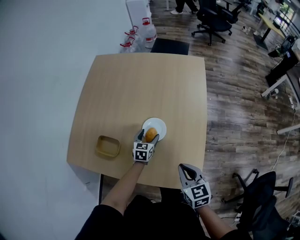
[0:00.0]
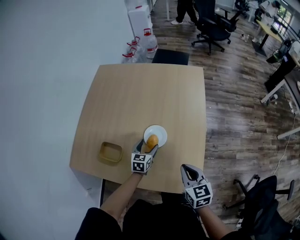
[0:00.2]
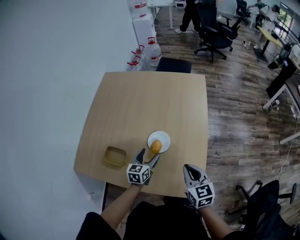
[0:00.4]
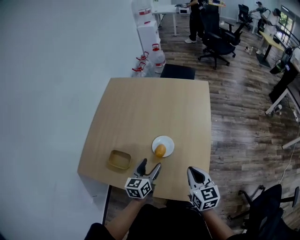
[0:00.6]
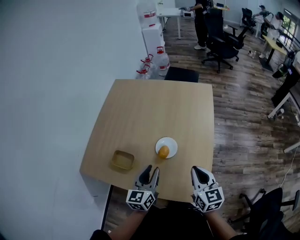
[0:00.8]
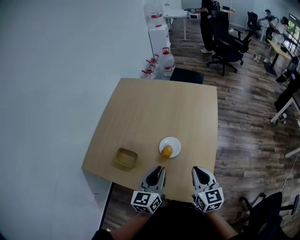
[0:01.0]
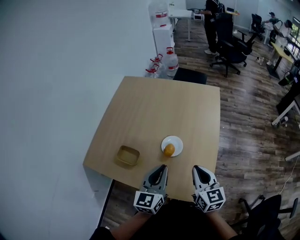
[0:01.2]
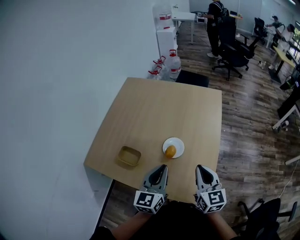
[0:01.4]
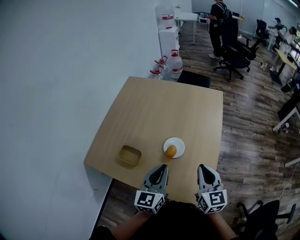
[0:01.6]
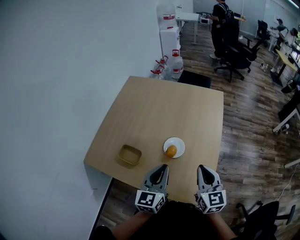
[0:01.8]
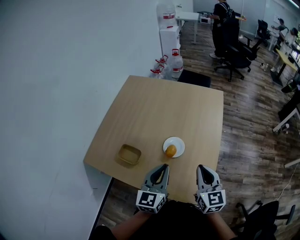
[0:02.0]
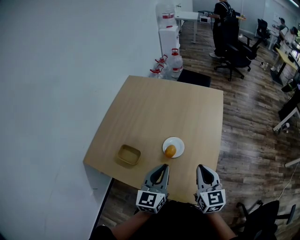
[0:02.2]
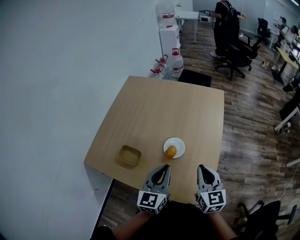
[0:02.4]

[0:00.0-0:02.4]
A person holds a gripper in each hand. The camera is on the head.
0:00.0 to 0:01.2: The right gripper goes roughly 10 cm upward; the left gripper moves upward and backward, approximately 35 cm, rotates approximately 30 degrees, and closes up.
0:01.2 to 0:02.4: There are only small adjustments of the grippers.

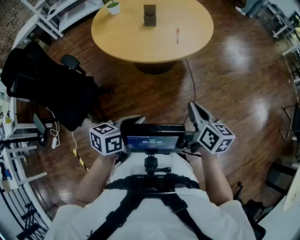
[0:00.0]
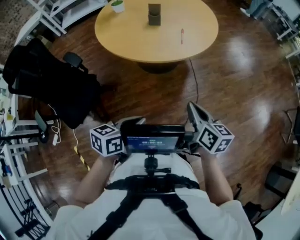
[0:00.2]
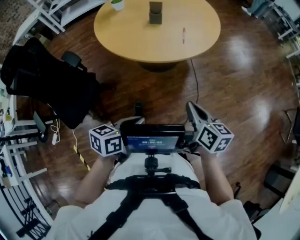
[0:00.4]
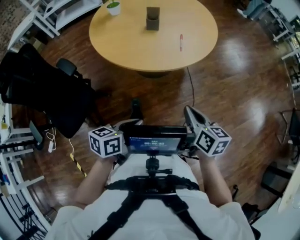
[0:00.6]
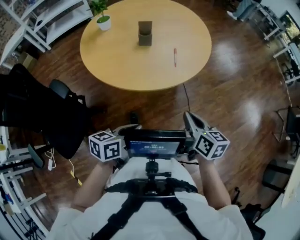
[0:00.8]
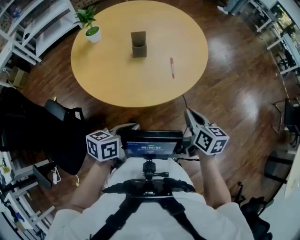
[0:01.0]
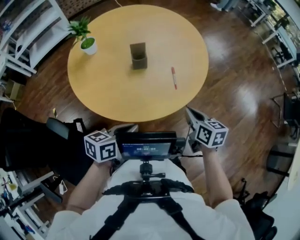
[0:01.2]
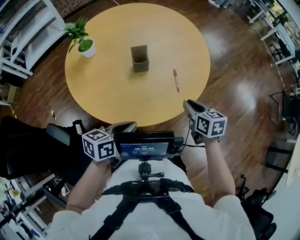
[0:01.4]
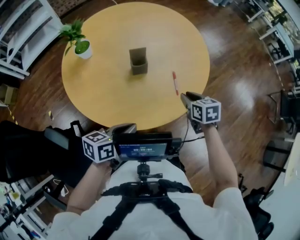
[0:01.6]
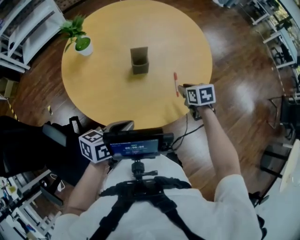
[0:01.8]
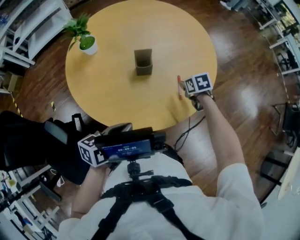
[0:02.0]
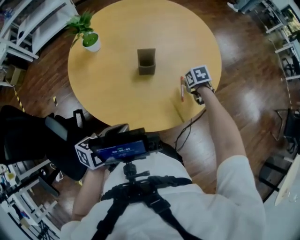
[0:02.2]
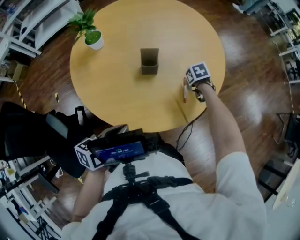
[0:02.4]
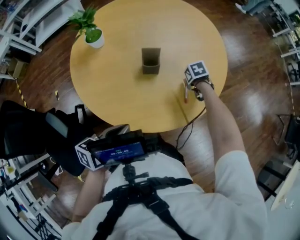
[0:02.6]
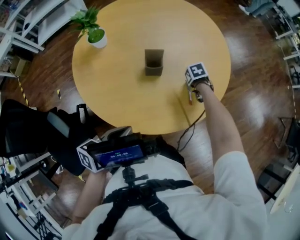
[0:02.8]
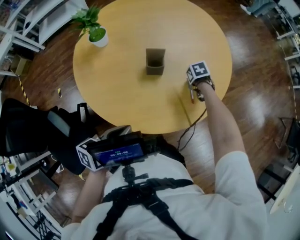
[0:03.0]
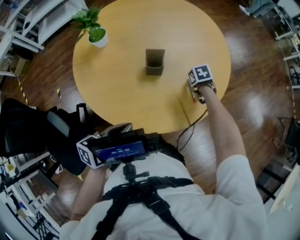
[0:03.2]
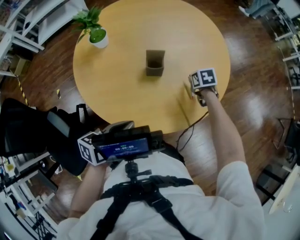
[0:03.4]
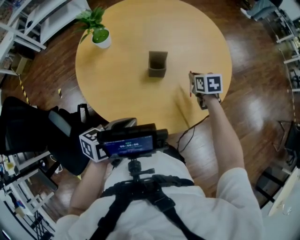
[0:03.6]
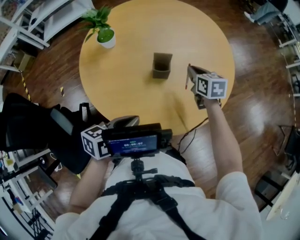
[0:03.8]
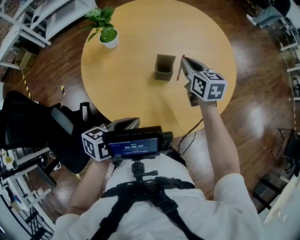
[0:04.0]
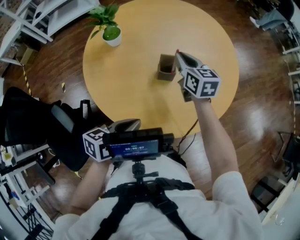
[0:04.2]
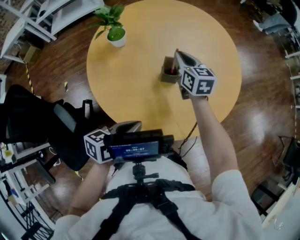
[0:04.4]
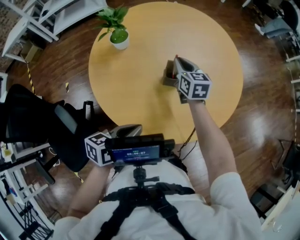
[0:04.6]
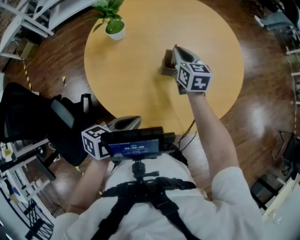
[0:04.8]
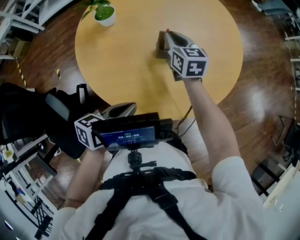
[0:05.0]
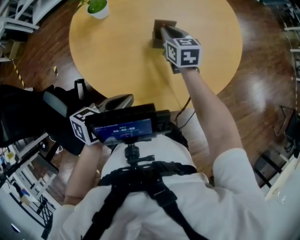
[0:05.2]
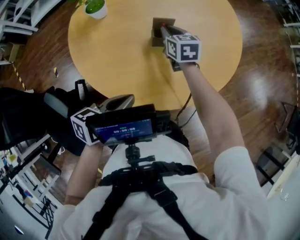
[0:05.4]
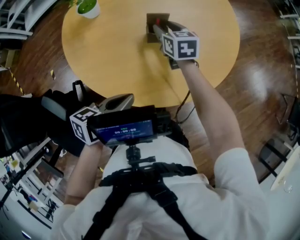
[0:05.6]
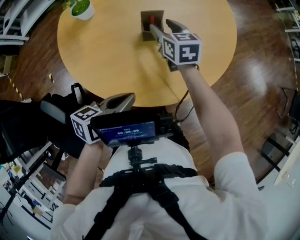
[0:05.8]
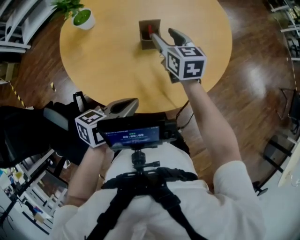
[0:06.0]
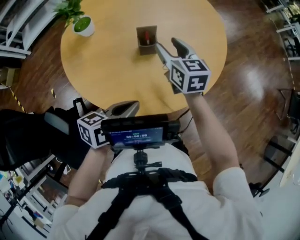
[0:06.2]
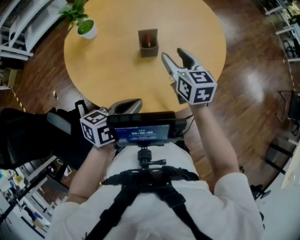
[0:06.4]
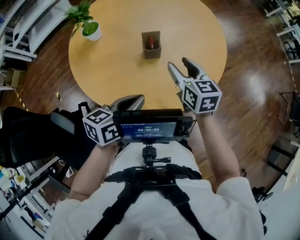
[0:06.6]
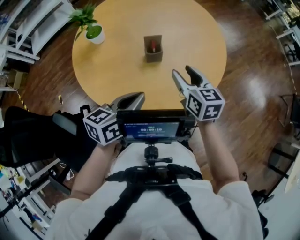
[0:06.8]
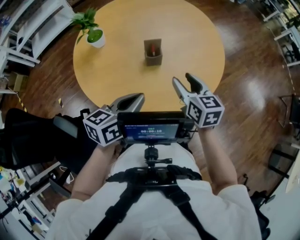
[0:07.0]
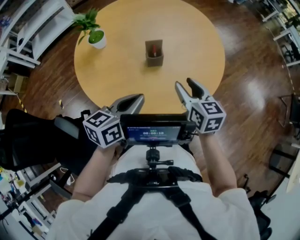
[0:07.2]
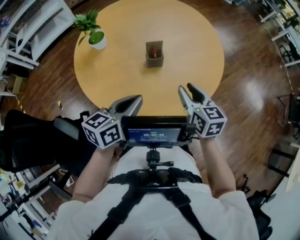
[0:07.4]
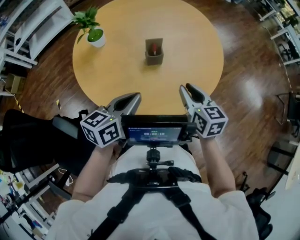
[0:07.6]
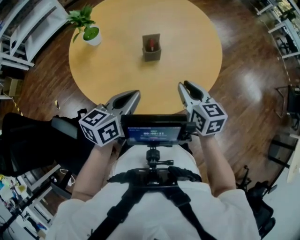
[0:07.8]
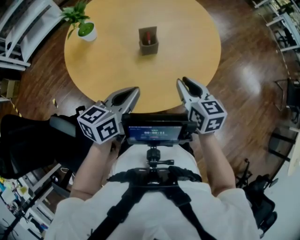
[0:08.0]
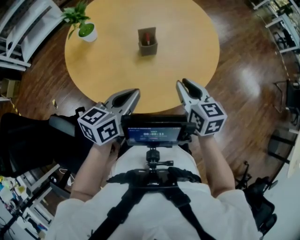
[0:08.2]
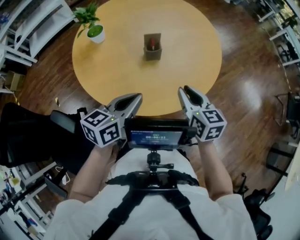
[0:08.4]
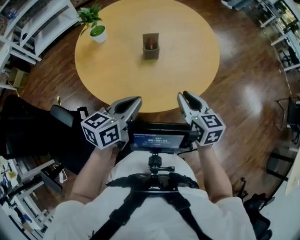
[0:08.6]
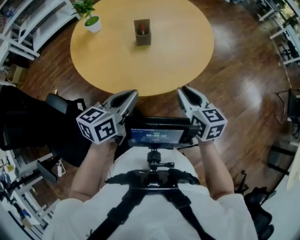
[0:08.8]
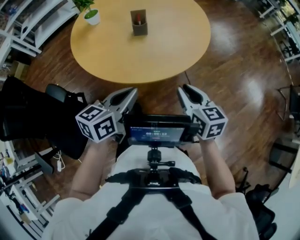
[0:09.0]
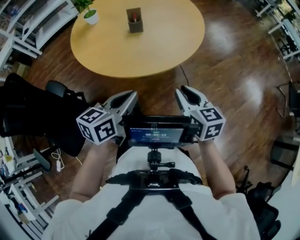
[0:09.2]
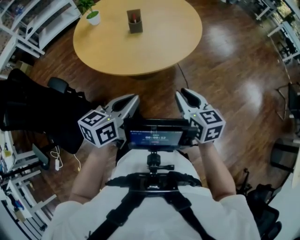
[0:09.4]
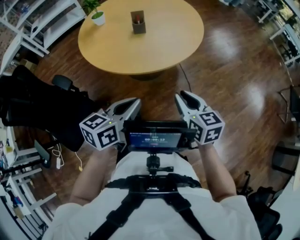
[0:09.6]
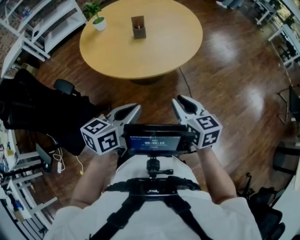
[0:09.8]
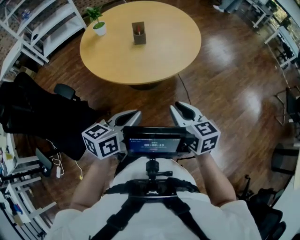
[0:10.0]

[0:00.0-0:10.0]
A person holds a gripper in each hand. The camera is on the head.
0:00.0 to 0:01.4: The right gripper is displaced forward by approximately 30 cm, and swivels roughly 20 degrees, while the left gripper travels forward and to the left by about 35 cm.
0:01.4 to 0:02.8: The right gripper moves some 25 cm, and tips its fingers downward by about 40 degrees.
0:02.8 to 0:04.2: The right gripper moves upward, some 25 cm, and points its fingers some 60 degrees further upward.
0:04.2 to 0:05.8: The right gripper travels downward by approximately 5 cm, and opens up.
0:05.8 to 0:07.2: The left gripper moves upward, approximately 10 cm, and turns by roughly 20 degrees; the right gripper is displaced backward, to the right and upward by about 20 cm.
0:07.2 to 0:08.6: Both grippers travel together backward, some 10 cm. The right gripper closes up.
0:08.6 to 0:10.0: The right gripper goes approximately 20 cm backward, while the left gripper travels backward and to the right by about 25 cm.

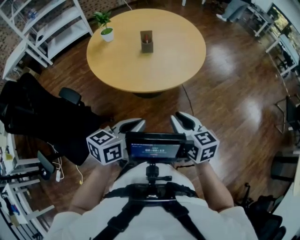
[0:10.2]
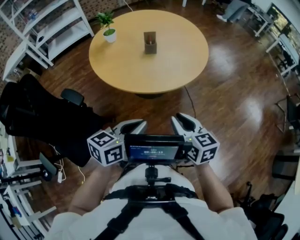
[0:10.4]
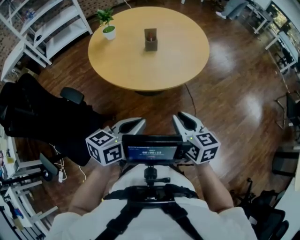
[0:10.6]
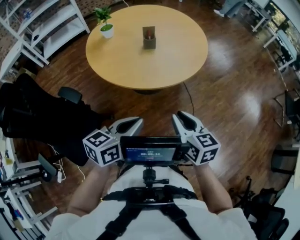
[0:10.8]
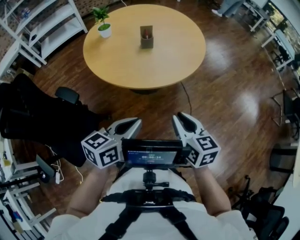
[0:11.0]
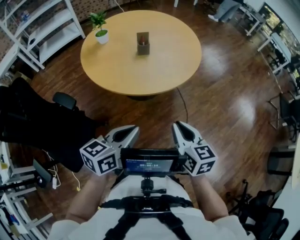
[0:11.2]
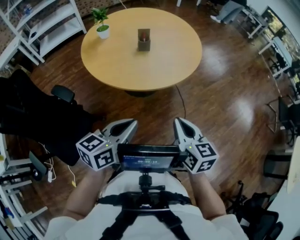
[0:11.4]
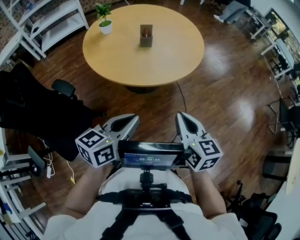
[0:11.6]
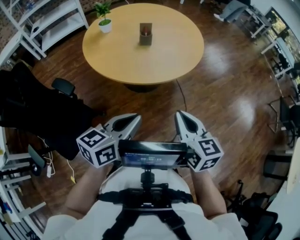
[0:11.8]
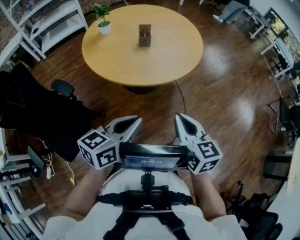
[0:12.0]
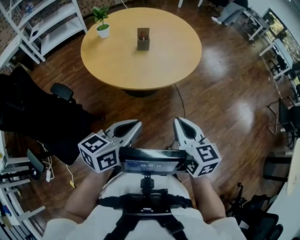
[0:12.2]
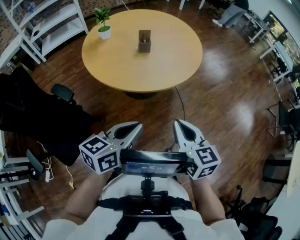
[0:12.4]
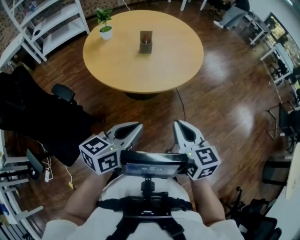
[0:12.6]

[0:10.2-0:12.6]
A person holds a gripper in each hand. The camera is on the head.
0:10.2 to 0:12.6: The grippers move only a little.

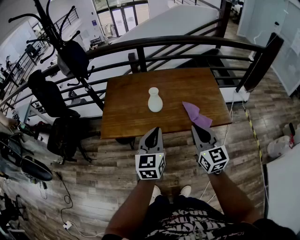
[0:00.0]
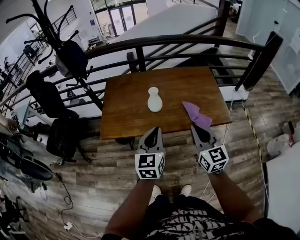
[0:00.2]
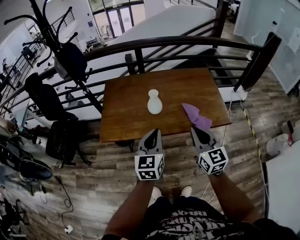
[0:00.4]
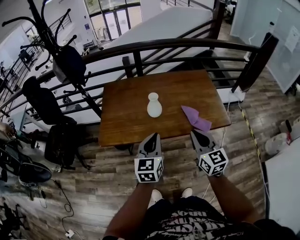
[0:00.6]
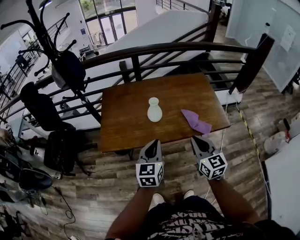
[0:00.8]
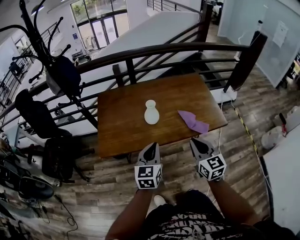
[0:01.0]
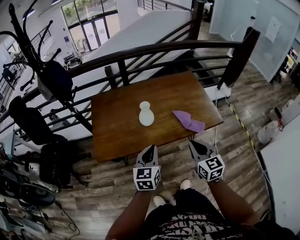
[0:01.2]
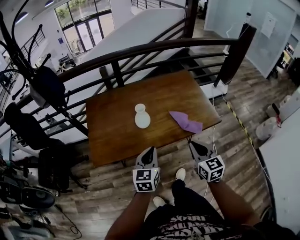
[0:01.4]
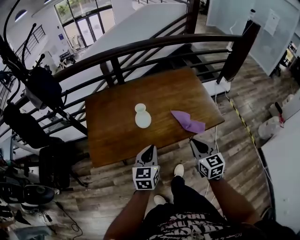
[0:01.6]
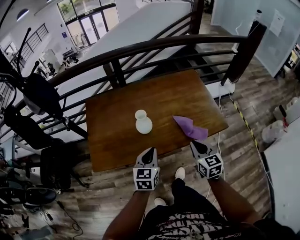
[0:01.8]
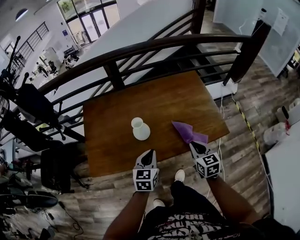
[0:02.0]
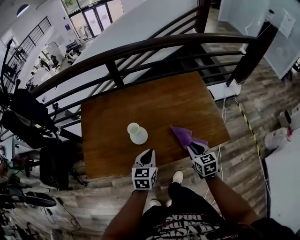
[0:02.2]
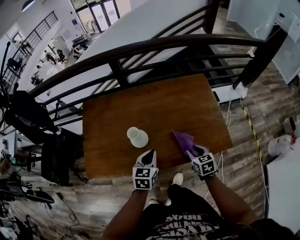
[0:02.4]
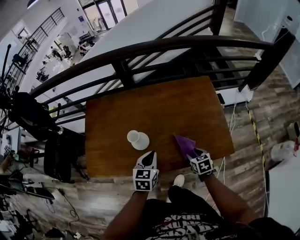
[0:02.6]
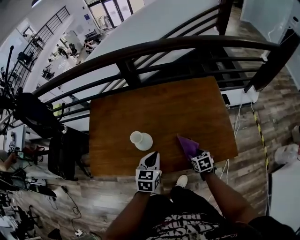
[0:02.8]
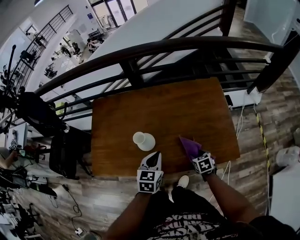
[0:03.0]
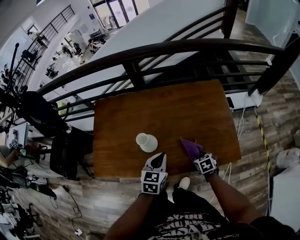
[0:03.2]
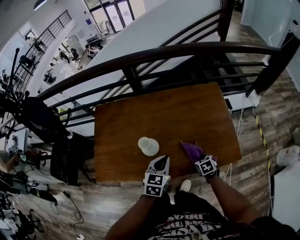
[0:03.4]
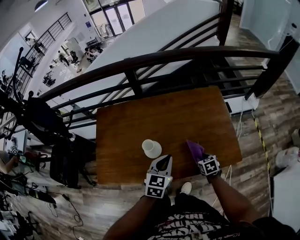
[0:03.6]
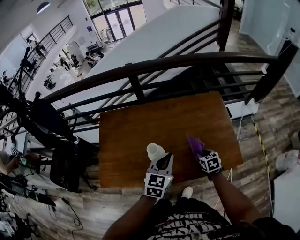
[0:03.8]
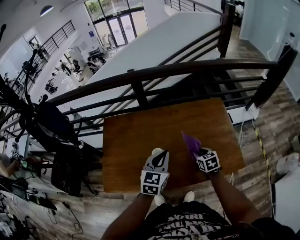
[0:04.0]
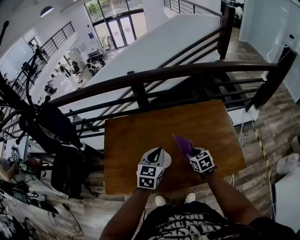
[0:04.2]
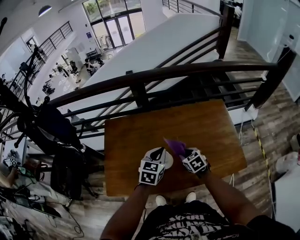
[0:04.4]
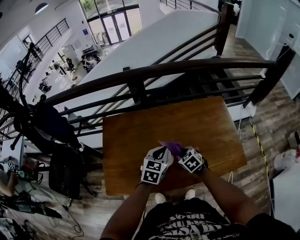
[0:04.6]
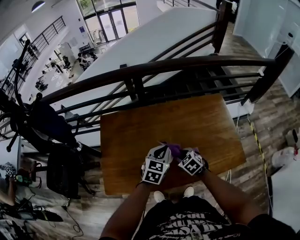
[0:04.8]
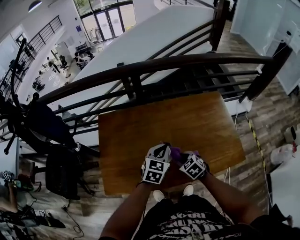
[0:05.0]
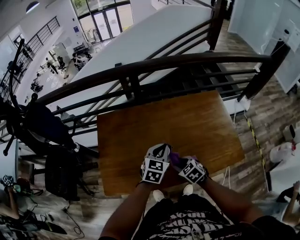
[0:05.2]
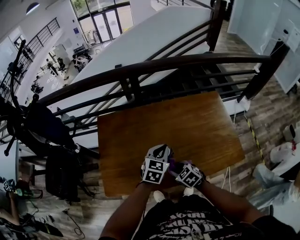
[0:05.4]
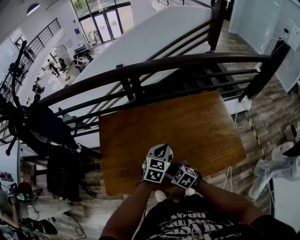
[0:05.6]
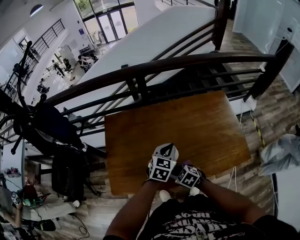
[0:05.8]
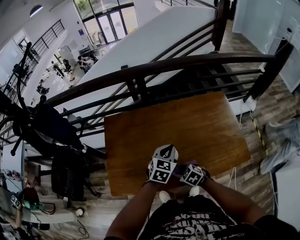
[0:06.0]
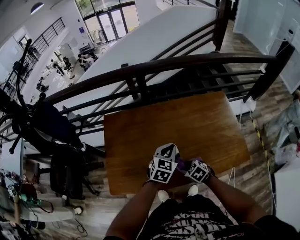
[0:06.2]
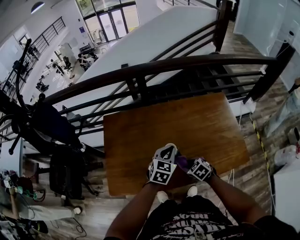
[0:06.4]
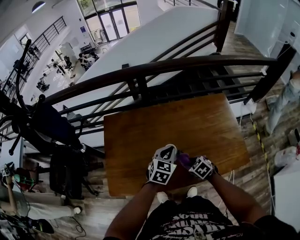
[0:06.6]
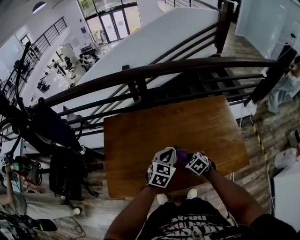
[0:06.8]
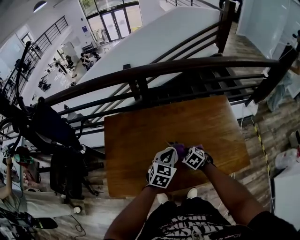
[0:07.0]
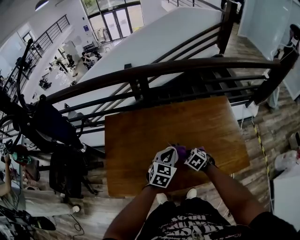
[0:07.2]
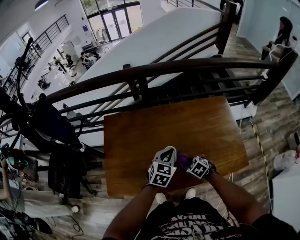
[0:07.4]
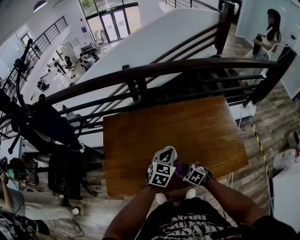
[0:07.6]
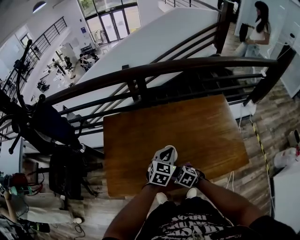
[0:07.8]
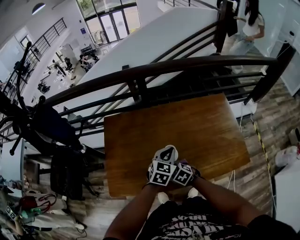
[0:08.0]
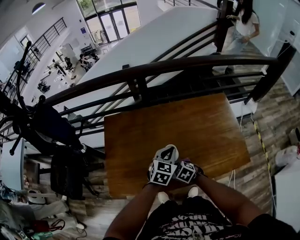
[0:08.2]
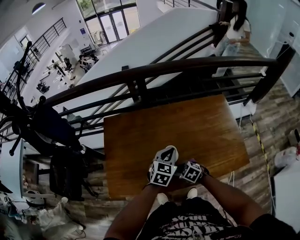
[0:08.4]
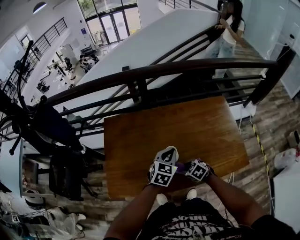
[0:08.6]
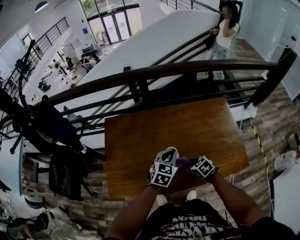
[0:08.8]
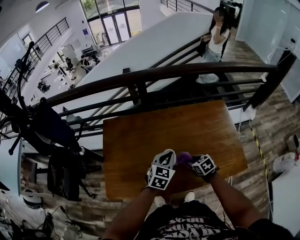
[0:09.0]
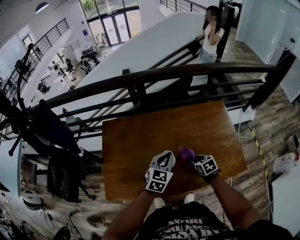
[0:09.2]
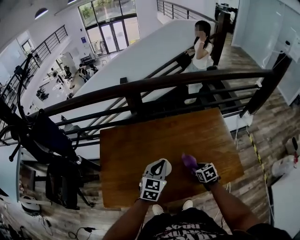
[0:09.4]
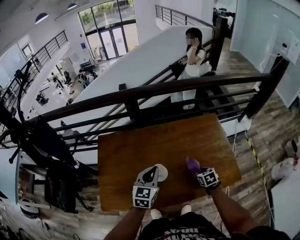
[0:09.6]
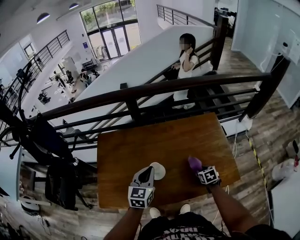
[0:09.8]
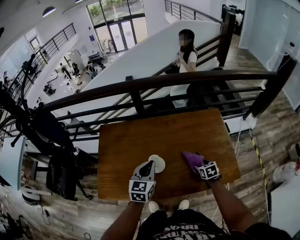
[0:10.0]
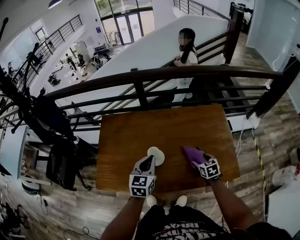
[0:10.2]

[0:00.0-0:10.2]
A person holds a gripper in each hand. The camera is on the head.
0:00.0 to 0:01.4: Both grippers move downward, approximately 10 cm.
0:01.4 to 0:03.0: The right gripper travels downward and forward by approximately 35 cm, tips its fingers downward by approximately 40 degrees, and opens up; the left gripper shifts about 20 cm forward.
0:03.0 to 0:04.4: The right gripper travels to the left, upward and forward by some 25 cm. Meanwhile the left gripper heads forward, to the left and upward, covering roughly 15 cm.
0:04.4 to 0:05.8: The right gripper travels to the left and backward by some 15 cm, and swivels roughly 30 degrees.
0:05.8 to 0:07.2: The right gripper moves to the right and forward, some 15 cm.
0:07.2 to 0:08.8: The right gripper moves about 15 cm to the left and comes back.
0:08.8 to 0:10.2: The left gripper shifts approximately 5 cm upward, and swivels roughly 20 degrees. Meanwhile the right gripper goes roughly 15 cm to the right, rotates roughly 20 degrees, and opens.
